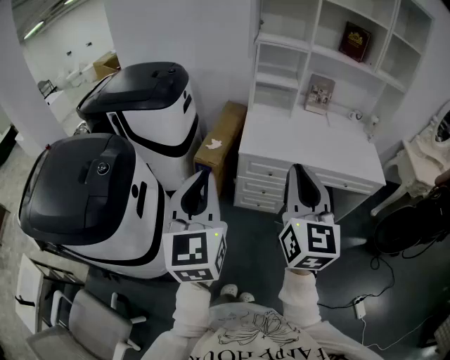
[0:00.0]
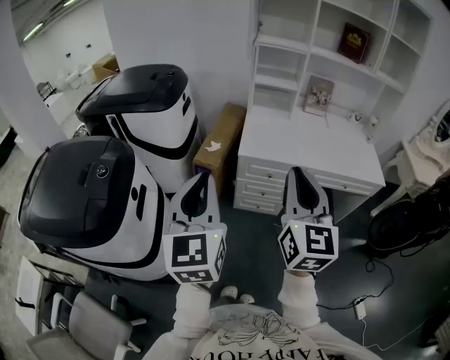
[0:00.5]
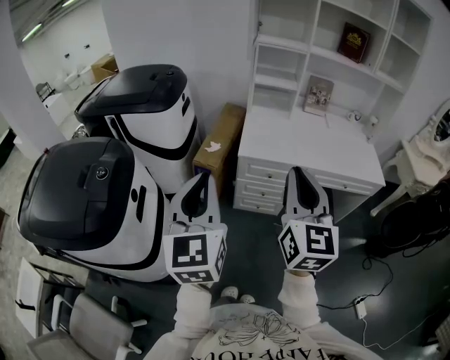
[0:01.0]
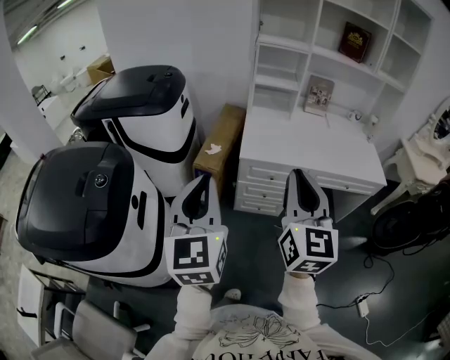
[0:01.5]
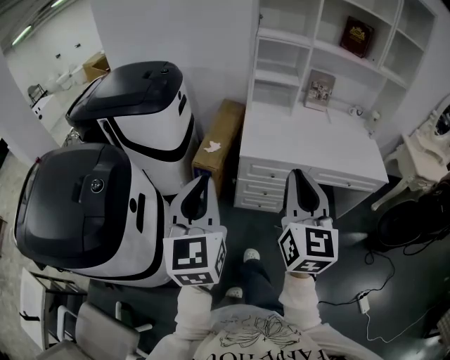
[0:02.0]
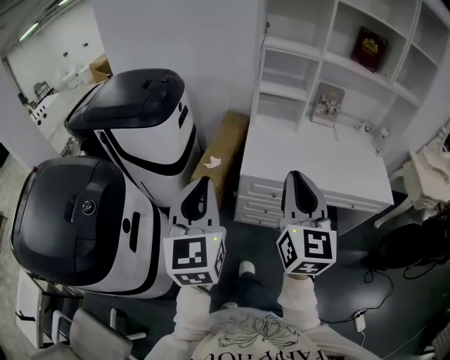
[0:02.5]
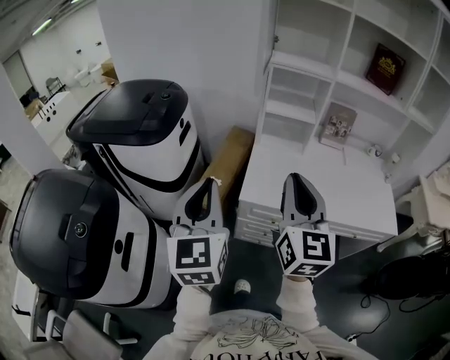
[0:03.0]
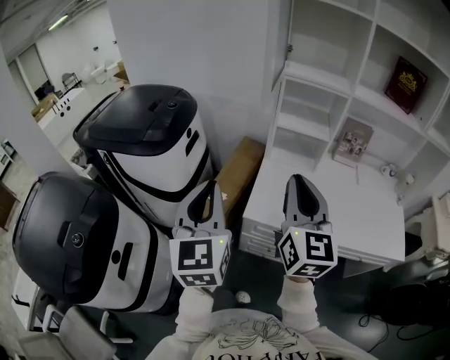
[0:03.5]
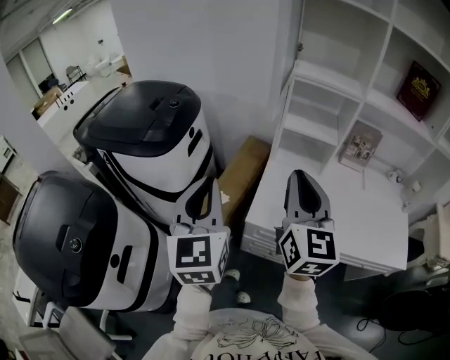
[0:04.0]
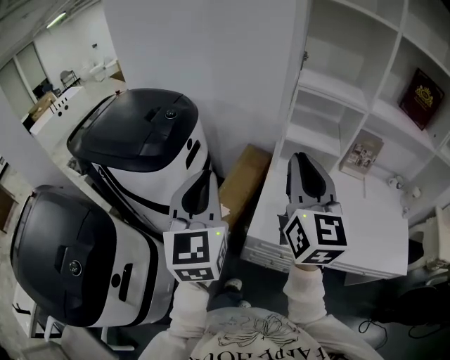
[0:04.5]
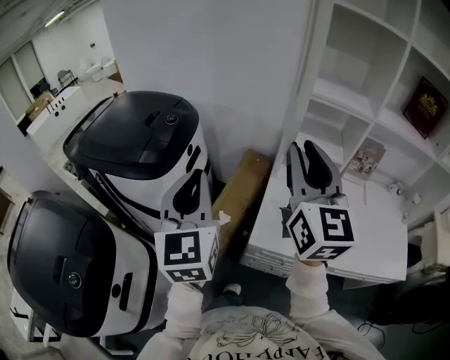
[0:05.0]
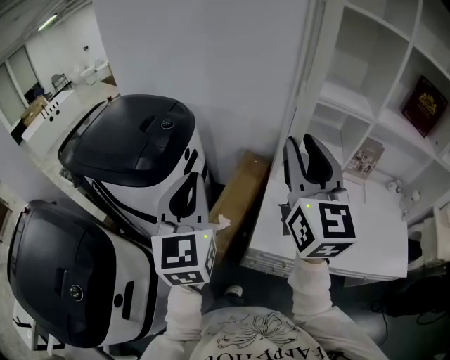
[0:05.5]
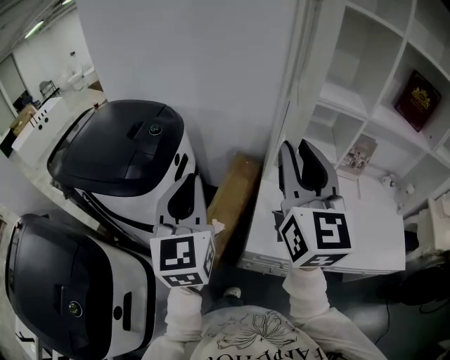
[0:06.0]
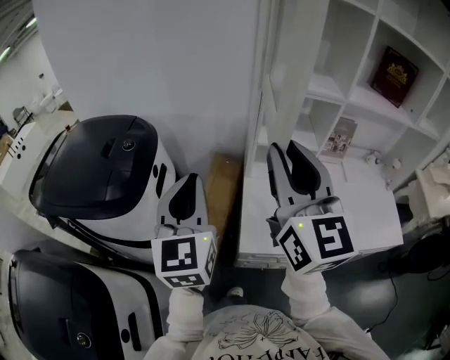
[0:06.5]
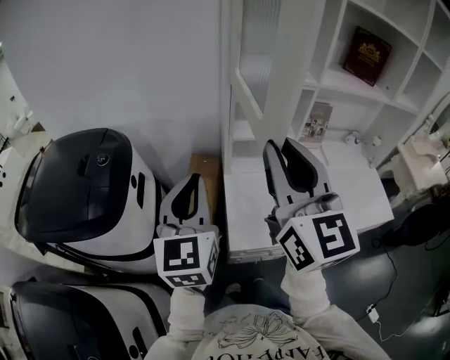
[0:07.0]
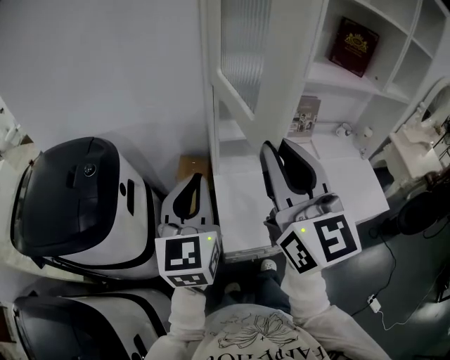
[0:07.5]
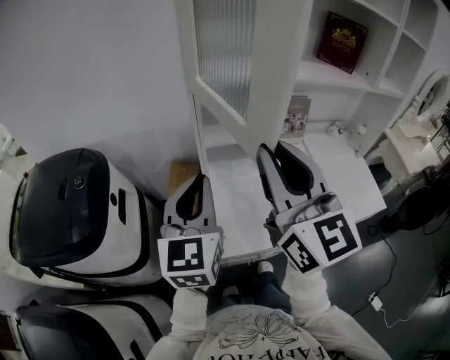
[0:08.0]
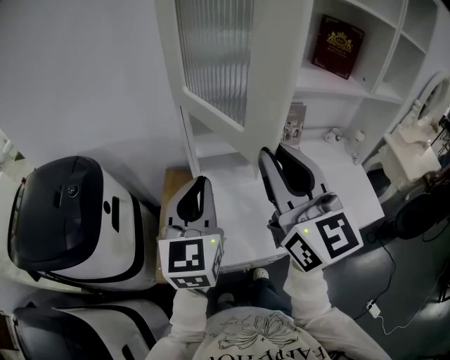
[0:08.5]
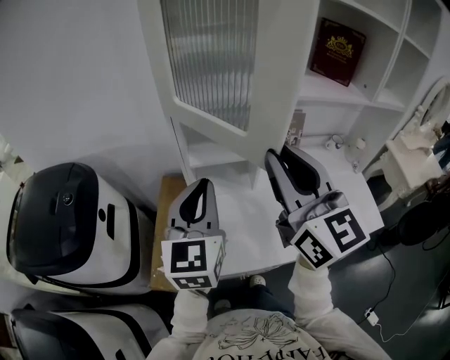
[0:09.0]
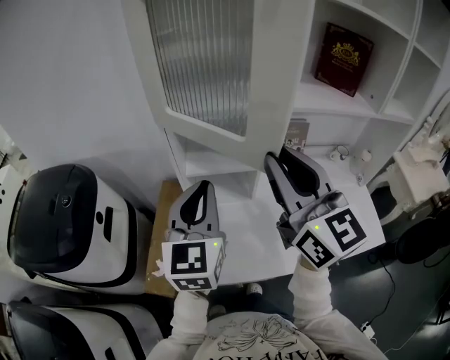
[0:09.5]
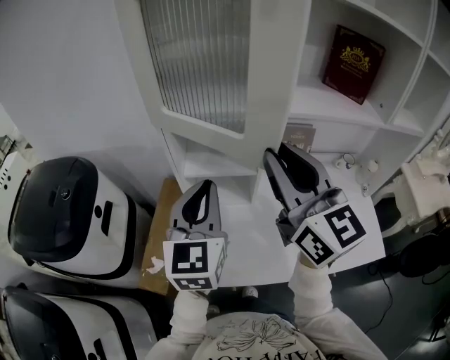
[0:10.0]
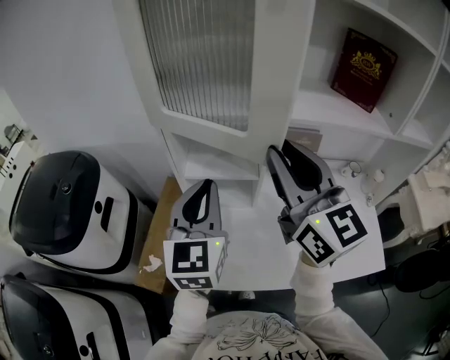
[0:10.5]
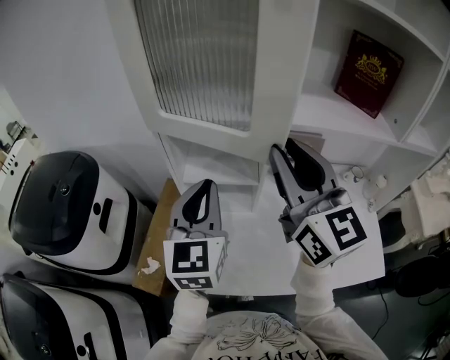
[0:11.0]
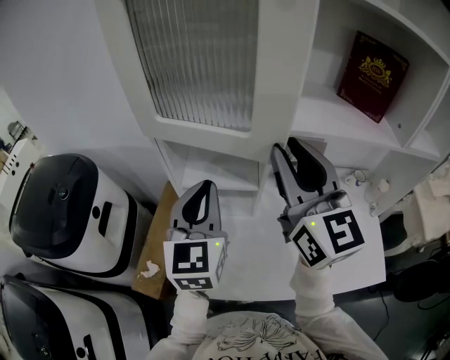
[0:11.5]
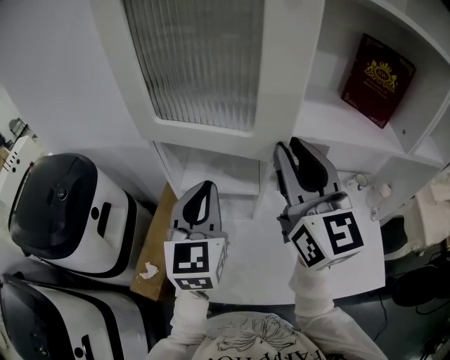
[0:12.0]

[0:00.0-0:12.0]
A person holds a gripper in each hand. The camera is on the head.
0:00.0 to 0:02.0: The grippers both shift forward by approximately 5 cm.
0:02.0 to 0:04.0: Both grippers move forward, about 35 cm.
0:04.0 to 0:06.0: The right gripper travels forward and upward by approximately 15 cm, while the left gripper heads forward, covering approximately 15 cm.
0:06.0 to 0:08.0: The left gripper shifts about 20 cm to the right and forward, and changes its angle by approximately 30 degrees. The right gripper heads to the right, covering roughly 10 cm.
0:08.0 to 0:10.0: The two grippers go roughly 20 cm to the right and forward.
0:10.0 to 0:12.0: The right gripper heads forward and to the right, covering some 10 cm. The left gripper goes roughly 5 cm forward.

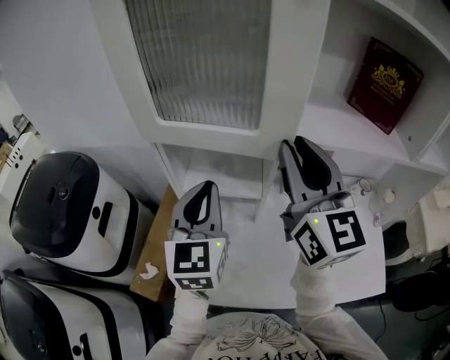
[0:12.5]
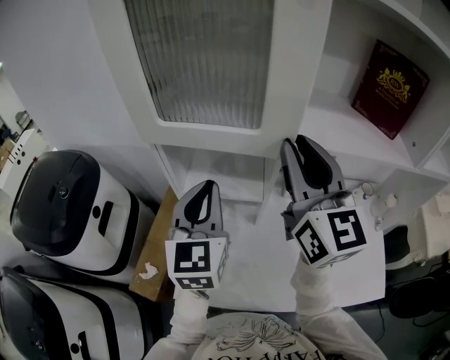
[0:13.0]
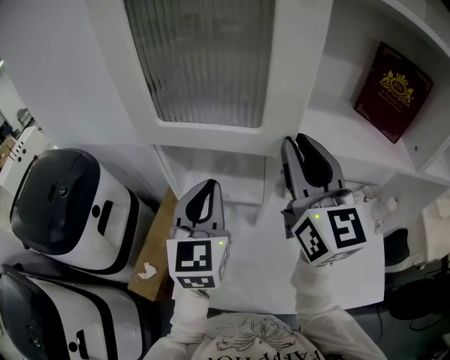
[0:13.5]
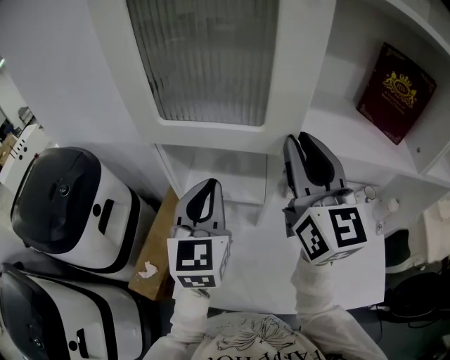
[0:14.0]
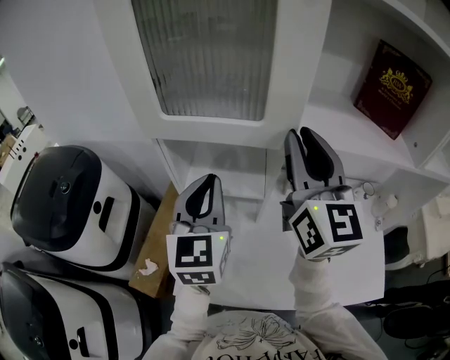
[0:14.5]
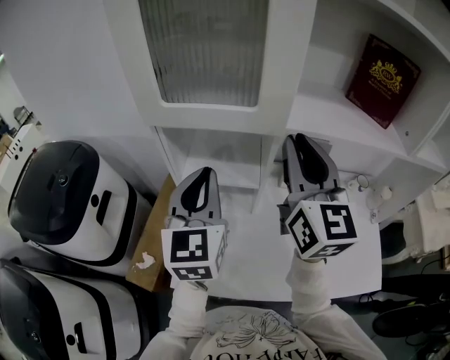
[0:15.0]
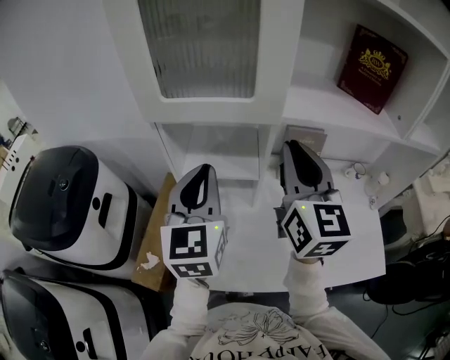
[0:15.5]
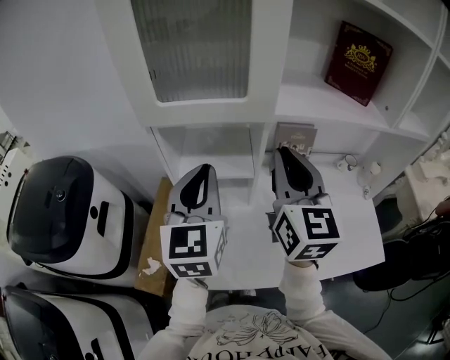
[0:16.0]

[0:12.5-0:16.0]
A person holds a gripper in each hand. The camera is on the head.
0:12.5 to 0:14.5: The grippers stay close to where they were, moving slightly.
0:14.5 to 0:16.0: The right gripper travels backward and downward by some 10 cm, while the left gripper travels backward by roughly 5 cm.

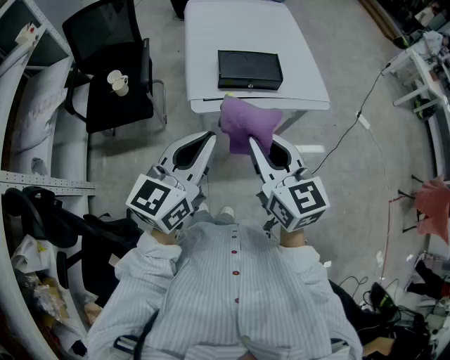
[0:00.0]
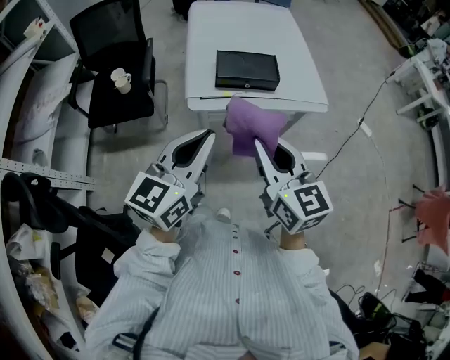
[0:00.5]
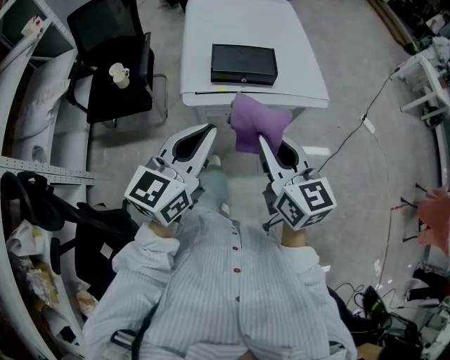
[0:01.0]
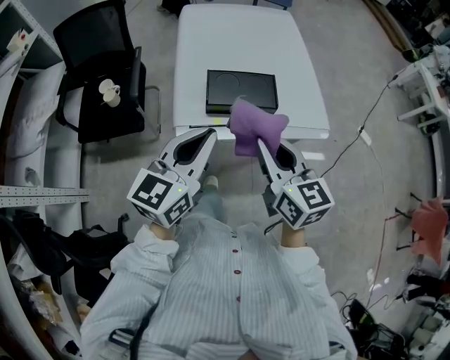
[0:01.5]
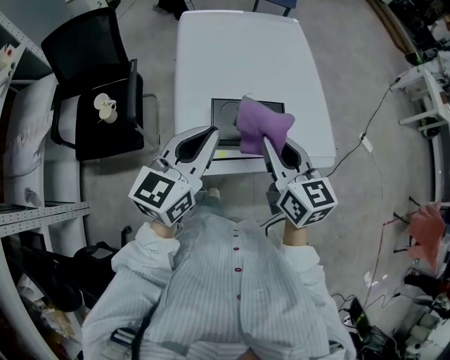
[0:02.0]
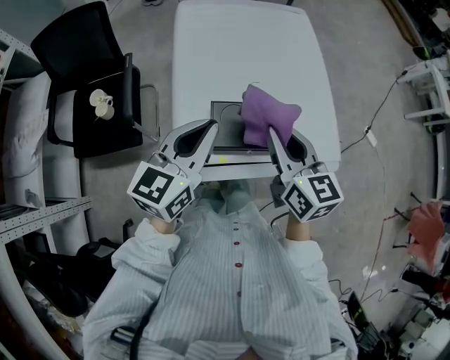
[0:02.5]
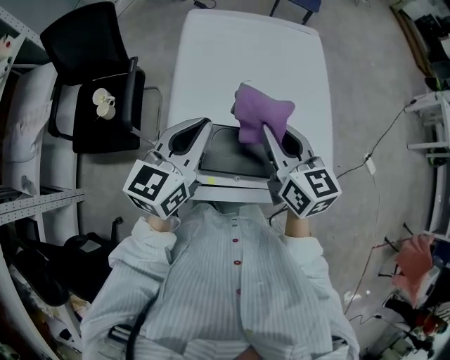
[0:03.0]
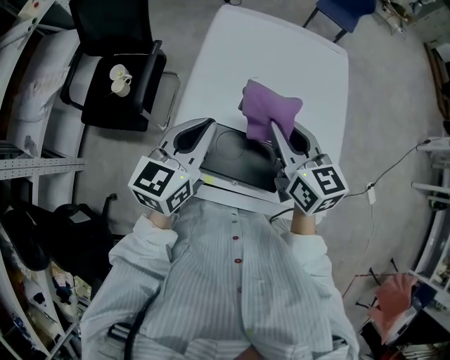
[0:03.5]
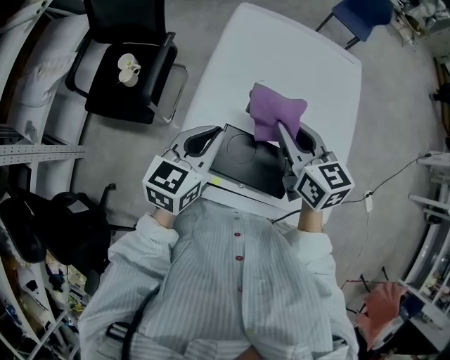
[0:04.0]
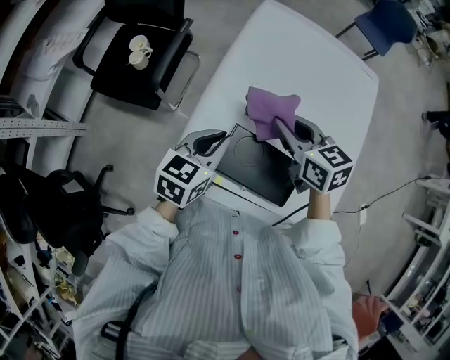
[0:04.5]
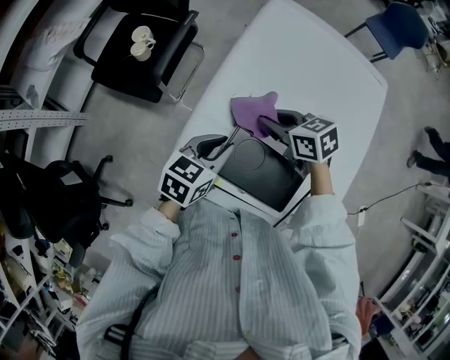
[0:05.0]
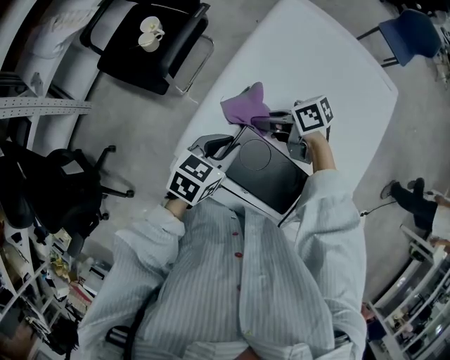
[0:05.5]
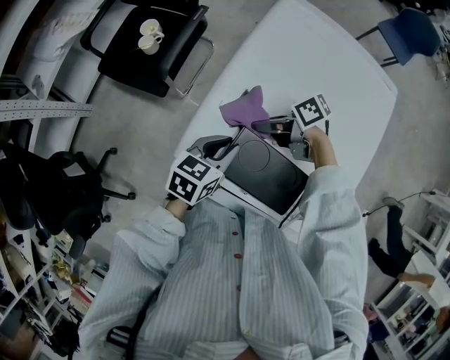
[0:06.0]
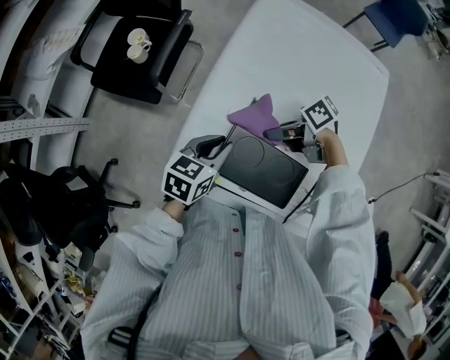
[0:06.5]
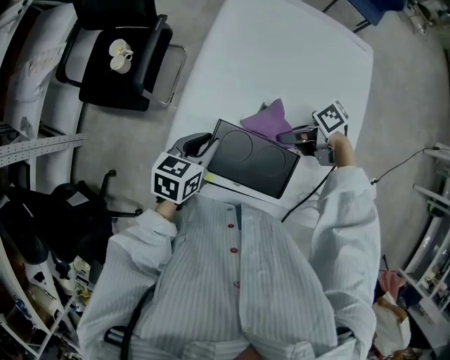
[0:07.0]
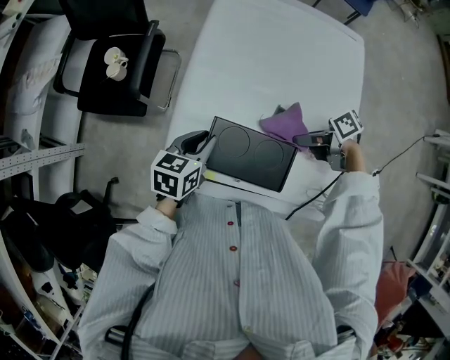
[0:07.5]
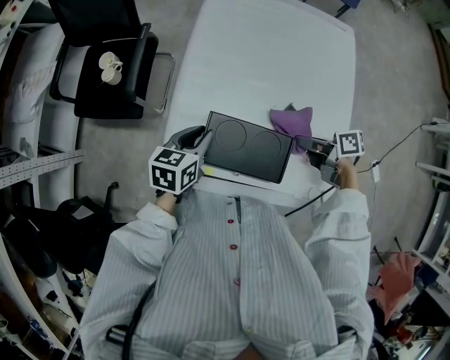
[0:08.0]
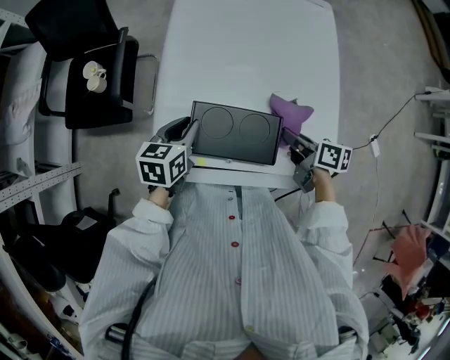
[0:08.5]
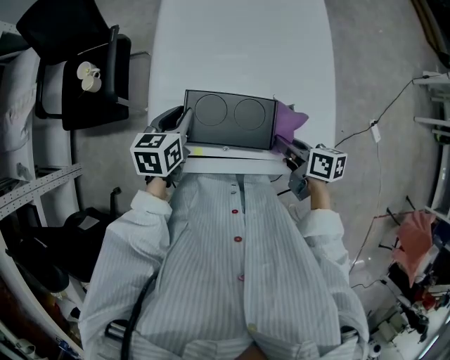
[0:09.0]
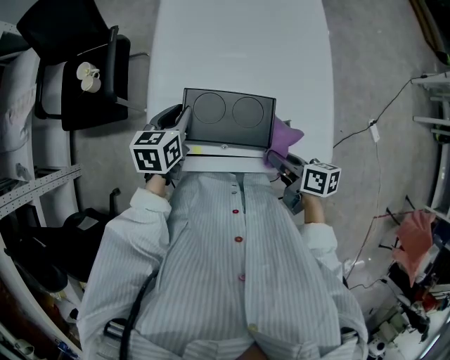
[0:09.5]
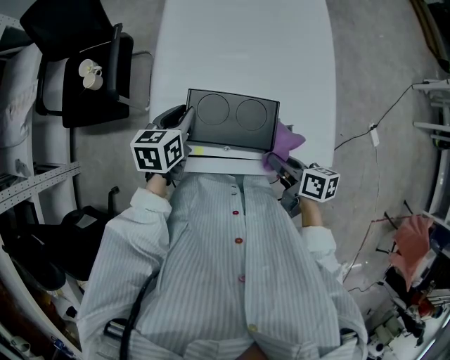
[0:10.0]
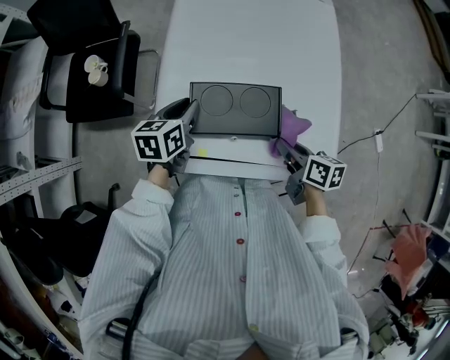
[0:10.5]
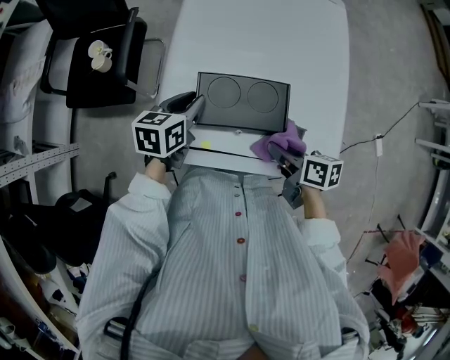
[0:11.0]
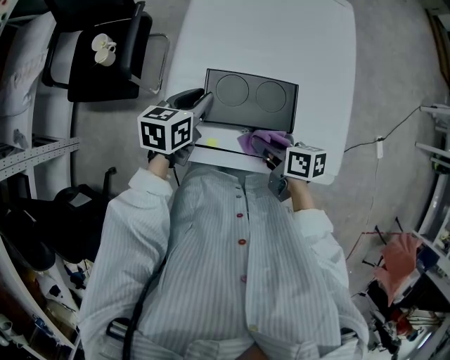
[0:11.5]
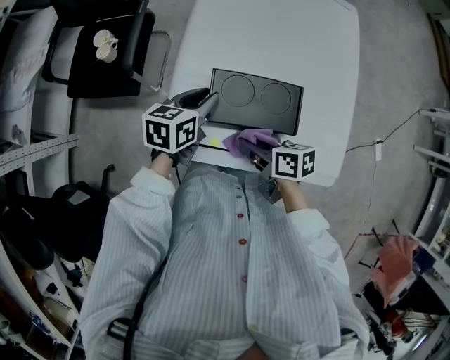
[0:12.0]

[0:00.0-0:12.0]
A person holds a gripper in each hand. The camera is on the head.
0:00.0 to 0:02.0: The grippers both shift forward by some 30 cm.
0:02.0 to 0:04.0: The right gripper goes roughly 20 cm forward, and turns by about 30 degrees; the left gripper shifts about 15 cm forward and downward, and rotates approximately 20 degrees.
0:04.0 to 0:06.0: The two grippers go approximately 15 cm downward. The left gripper rotates roughly 20 degrees, while the right gripper turns by roughly 80 degrees.
0:06.0 to 0:08.0: The right gripper shifts by some 20 cm, and rotates roughly 40 degrees.
0:08.0 to 0:10.0: The right gripper moves backward, some 15 cm, and rotates about 30 degrees.
0:10.0 to 0:12.0: The right gripper travels to the left by about 15 cm.
